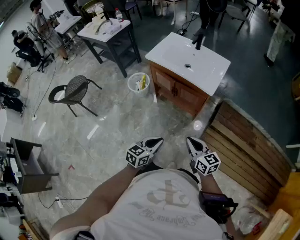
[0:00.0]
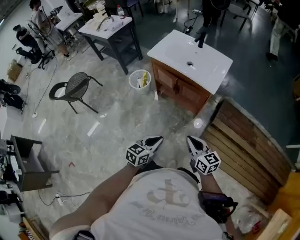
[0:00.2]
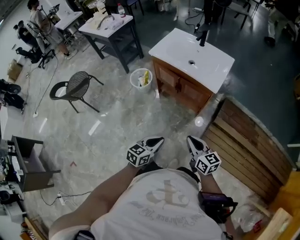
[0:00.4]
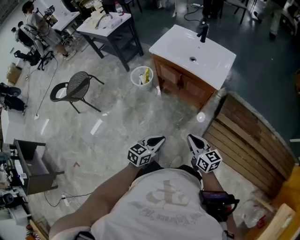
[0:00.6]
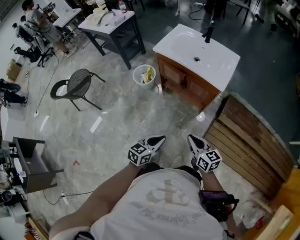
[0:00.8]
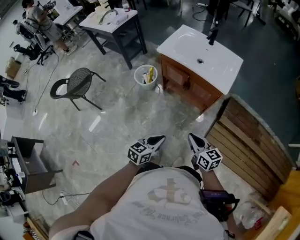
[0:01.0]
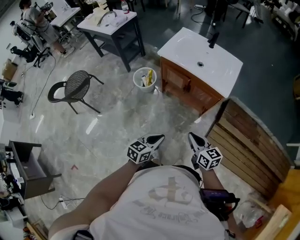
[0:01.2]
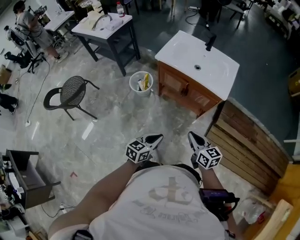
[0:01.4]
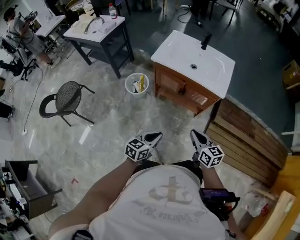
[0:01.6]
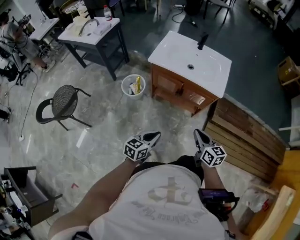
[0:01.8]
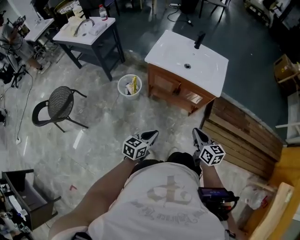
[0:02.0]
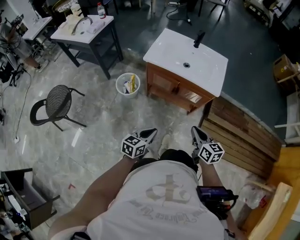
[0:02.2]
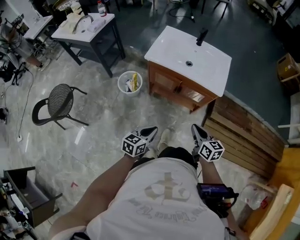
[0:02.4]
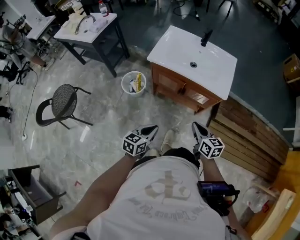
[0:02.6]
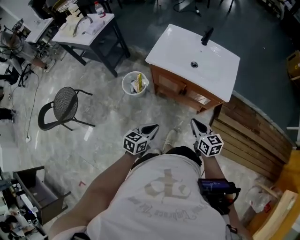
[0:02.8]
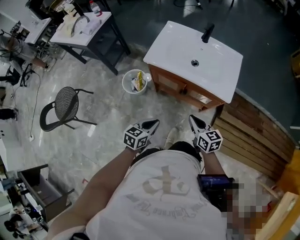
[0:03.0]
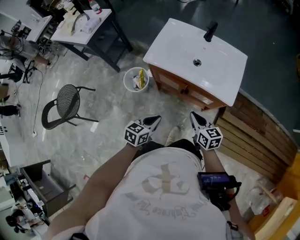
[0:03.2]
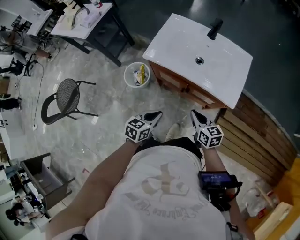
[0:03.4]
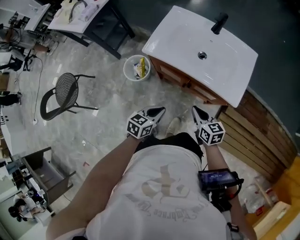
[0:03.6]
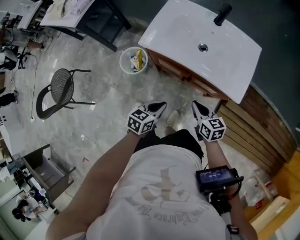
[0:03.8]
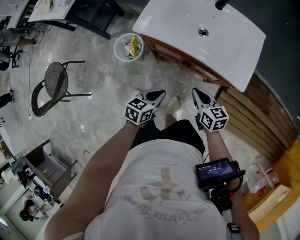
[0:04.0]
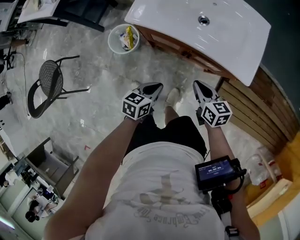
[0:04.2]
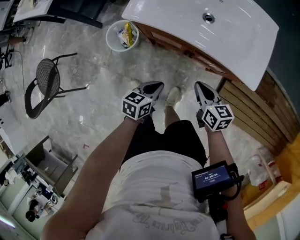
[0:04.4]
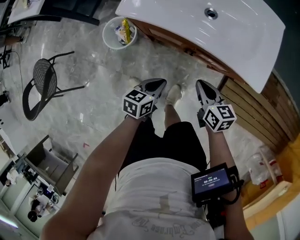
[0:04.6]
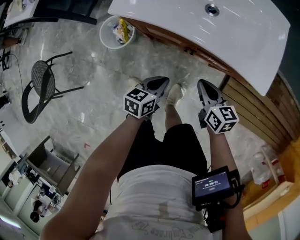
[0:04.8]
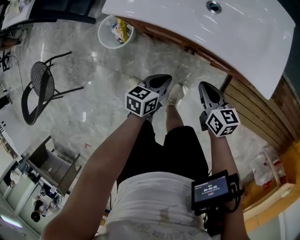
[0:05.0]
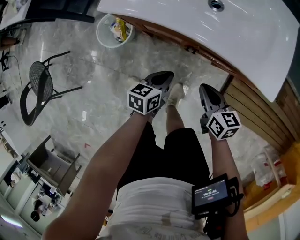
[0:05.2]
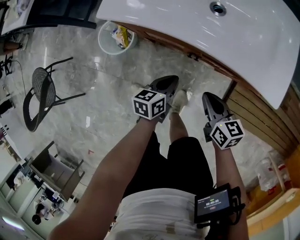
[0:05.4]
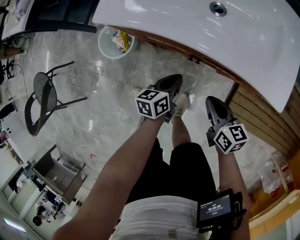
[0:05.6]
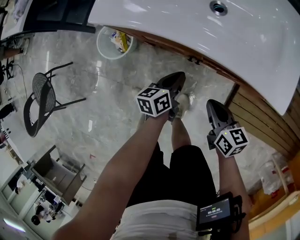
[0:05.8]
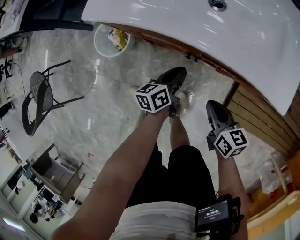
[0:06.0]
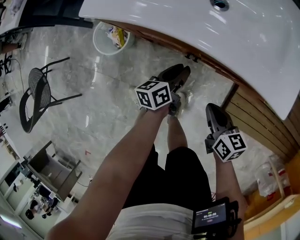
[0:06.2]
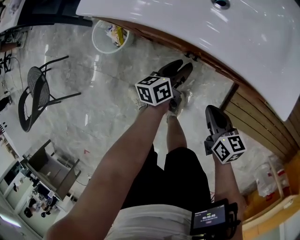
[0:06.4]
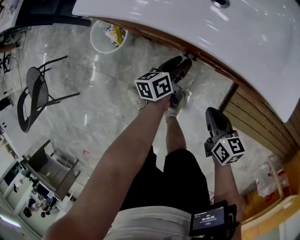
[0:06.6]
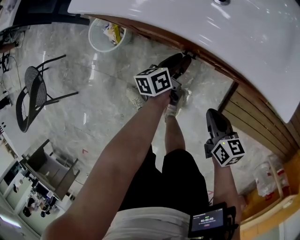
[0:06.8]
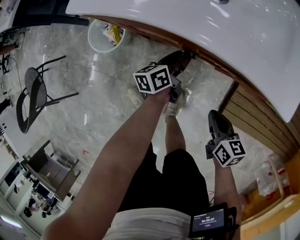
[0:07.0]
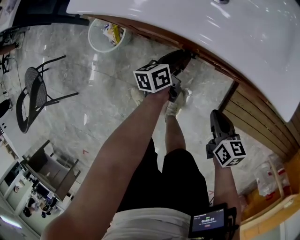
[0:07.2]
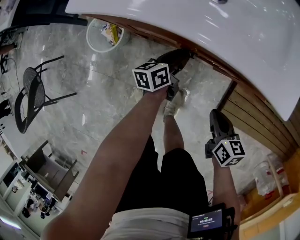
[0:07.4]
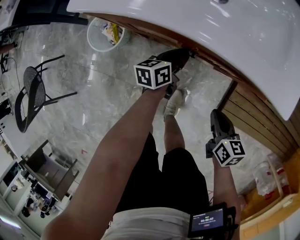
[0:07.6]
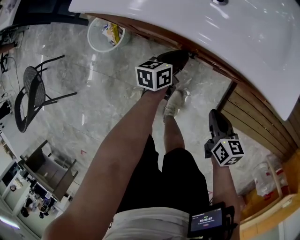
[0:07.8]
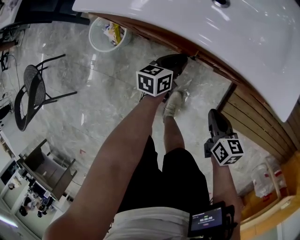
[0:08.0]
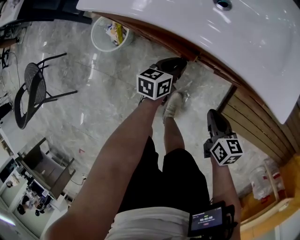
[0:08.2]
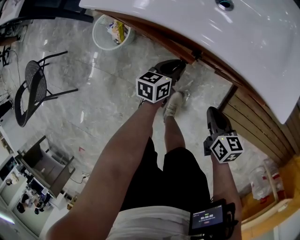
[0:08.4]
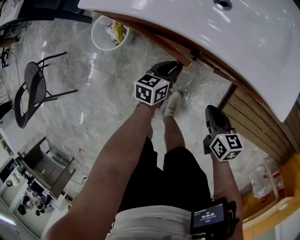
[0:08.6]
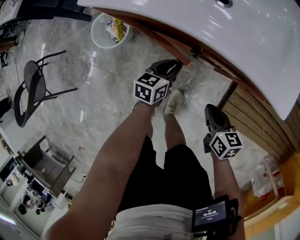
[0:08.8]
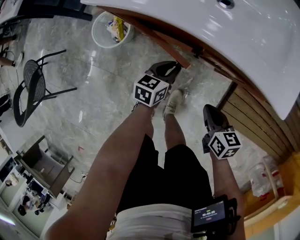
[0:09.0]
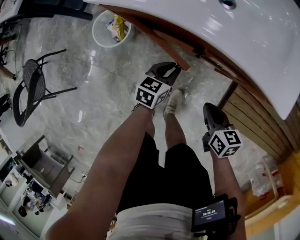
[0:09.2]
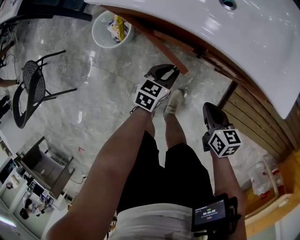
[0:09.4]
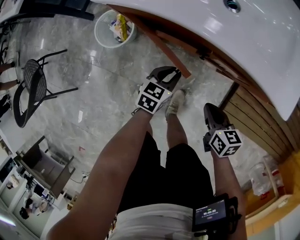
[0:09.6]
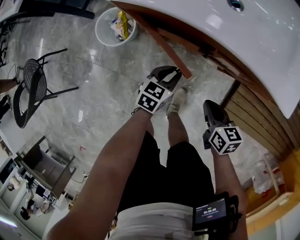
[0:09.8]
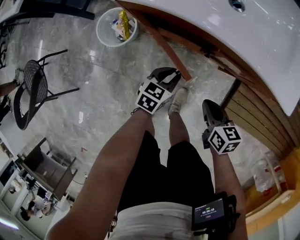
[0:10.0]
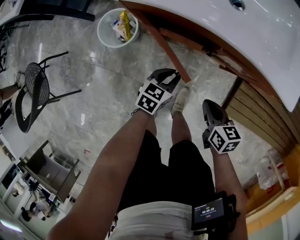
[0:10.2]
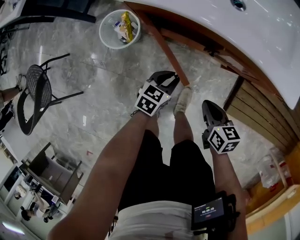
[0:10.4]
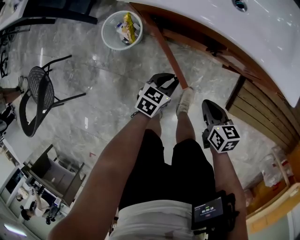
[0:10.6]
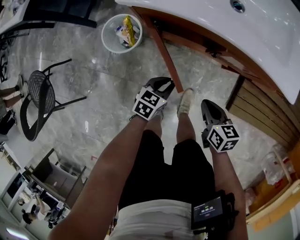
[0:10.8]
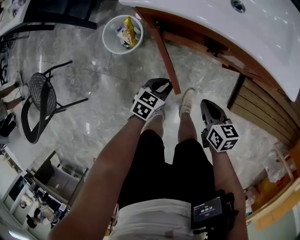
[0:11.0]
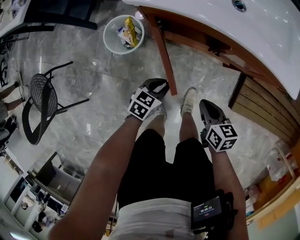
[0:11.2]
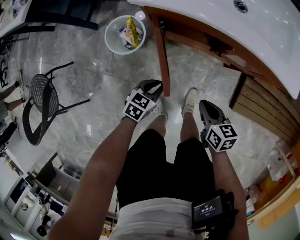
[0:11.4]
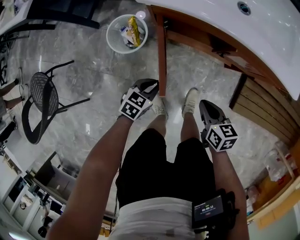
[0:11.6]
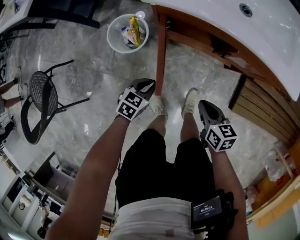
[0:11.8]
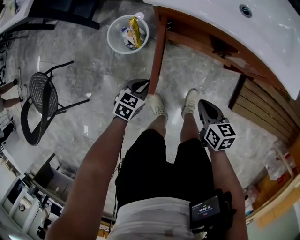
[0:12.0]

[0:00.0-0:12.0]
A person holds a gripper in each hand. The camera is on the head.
0:00.0 to 0:01.6: Both grippers travel together to the left and forward, approximately 20 cm.
0:01.6 to 0:03.0: Both grippers move forward, some 20 cm.
0:03.0 to 0:04.4: The two grippers go approximately 20 cm downward and forward.
0:04.4 to 0:06.0: The left gripper goes some 20 cm downward, forward and to the right, and turns by roughly 30 degrees. Meanwhile the right gripper travels downward by roughly 10 cm.
0:06.0 to 0:07.6: The left gripper shifts by some 5 cm, and opens, then closes once more. The right gripper is displaced to the right by roughly 5 cm.
0:07.6 to 0:09.0: The left gripper travels backward by approximately 5 cm.
0:09.0 to 0:10.4: The right gripper goes some 10 cm to the left. Meanwhile the left gripper goes roughly 10 cm to the left and backward.
0:10.4 to 0:12.0: The right gripper heads to the left, covering approximately 10 cm. The left gripper shifts approximately 20 cm to the left.

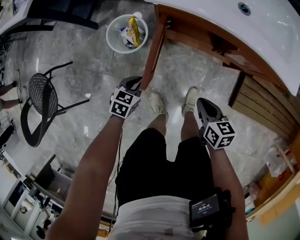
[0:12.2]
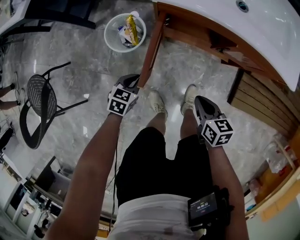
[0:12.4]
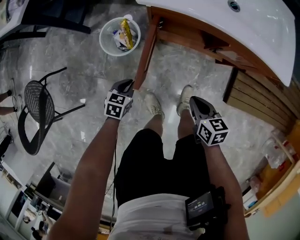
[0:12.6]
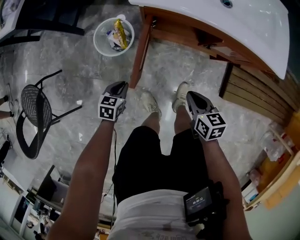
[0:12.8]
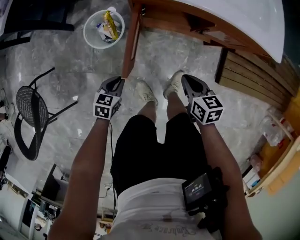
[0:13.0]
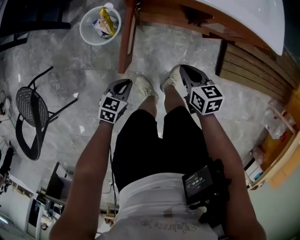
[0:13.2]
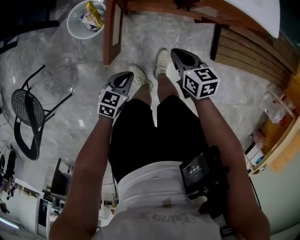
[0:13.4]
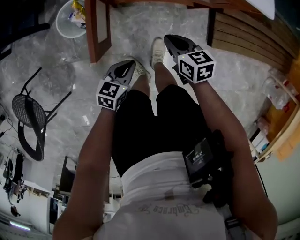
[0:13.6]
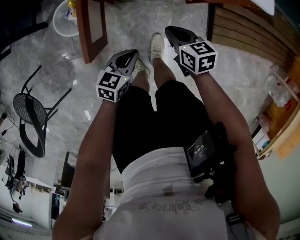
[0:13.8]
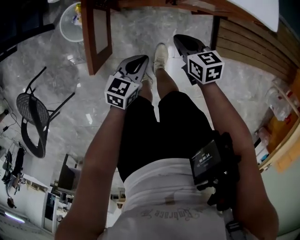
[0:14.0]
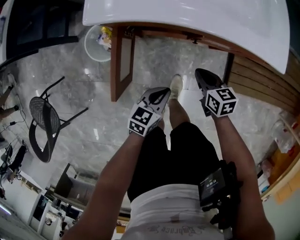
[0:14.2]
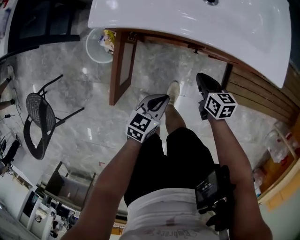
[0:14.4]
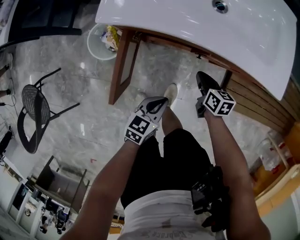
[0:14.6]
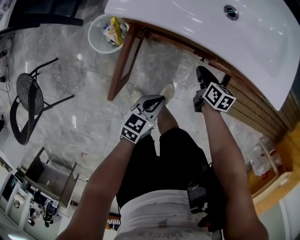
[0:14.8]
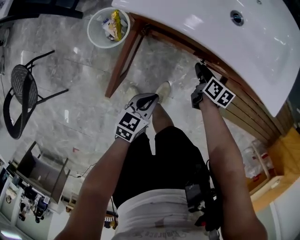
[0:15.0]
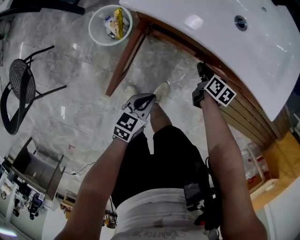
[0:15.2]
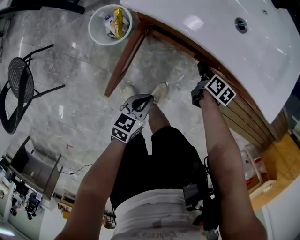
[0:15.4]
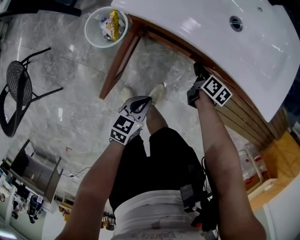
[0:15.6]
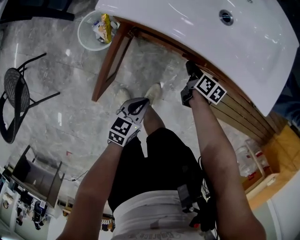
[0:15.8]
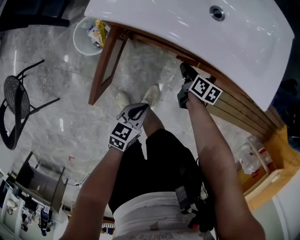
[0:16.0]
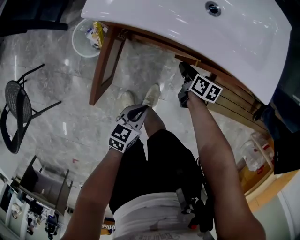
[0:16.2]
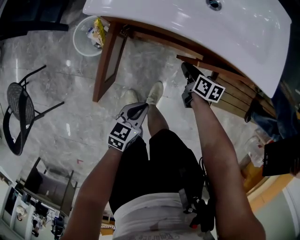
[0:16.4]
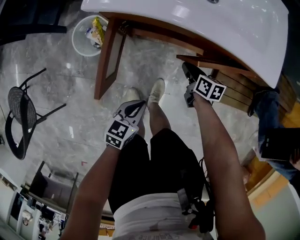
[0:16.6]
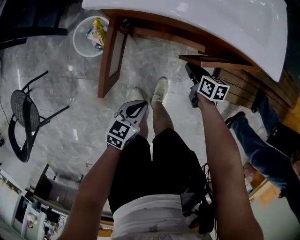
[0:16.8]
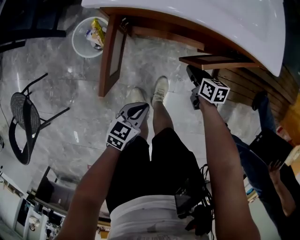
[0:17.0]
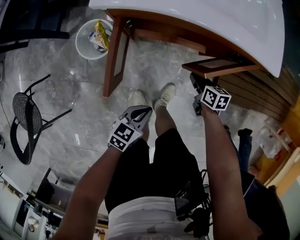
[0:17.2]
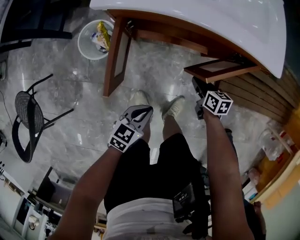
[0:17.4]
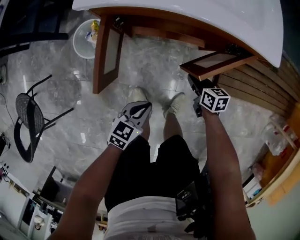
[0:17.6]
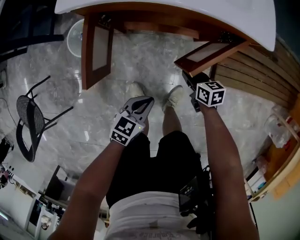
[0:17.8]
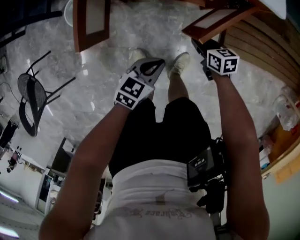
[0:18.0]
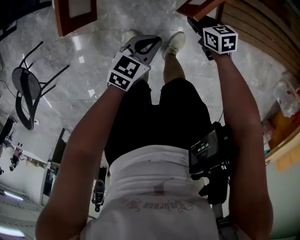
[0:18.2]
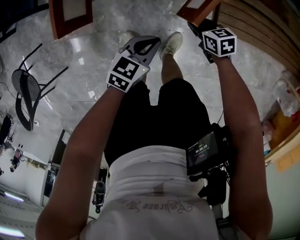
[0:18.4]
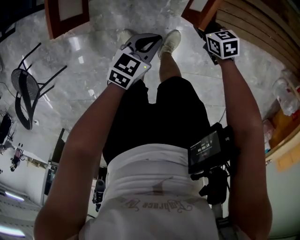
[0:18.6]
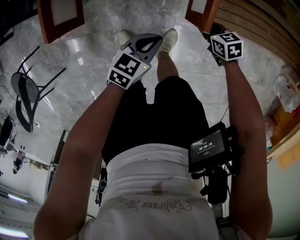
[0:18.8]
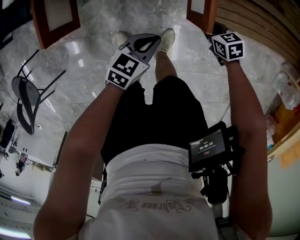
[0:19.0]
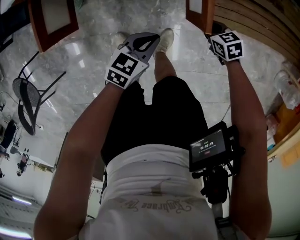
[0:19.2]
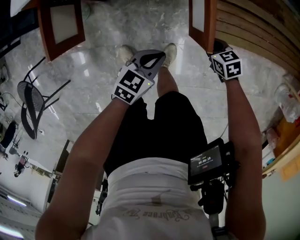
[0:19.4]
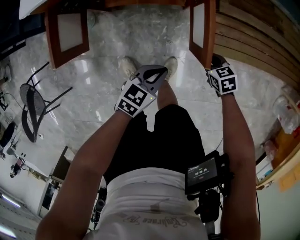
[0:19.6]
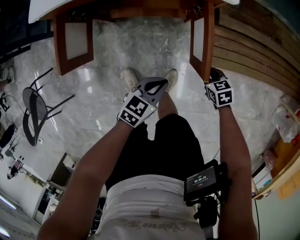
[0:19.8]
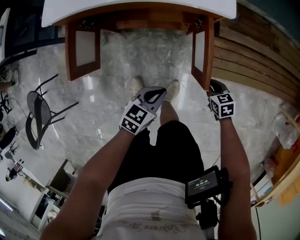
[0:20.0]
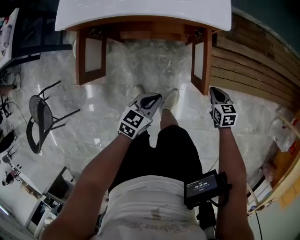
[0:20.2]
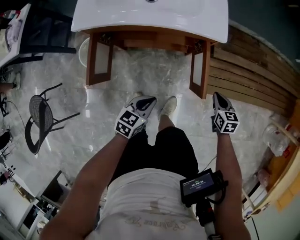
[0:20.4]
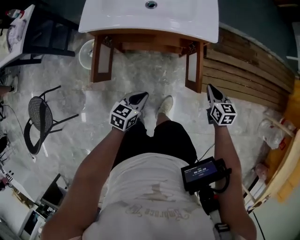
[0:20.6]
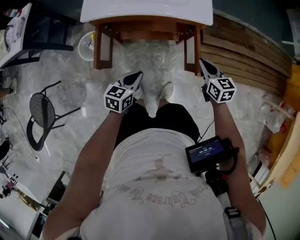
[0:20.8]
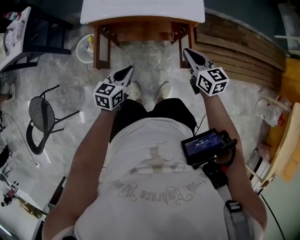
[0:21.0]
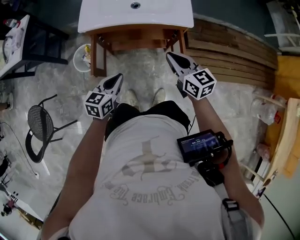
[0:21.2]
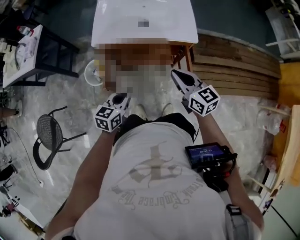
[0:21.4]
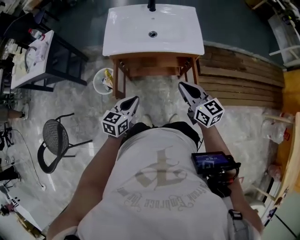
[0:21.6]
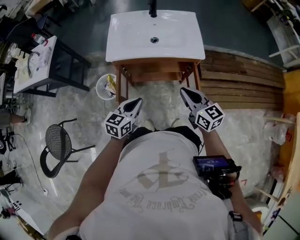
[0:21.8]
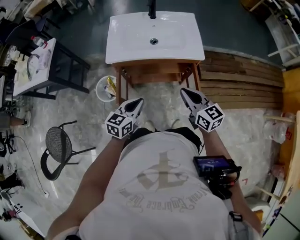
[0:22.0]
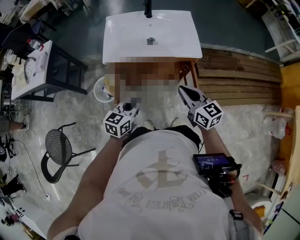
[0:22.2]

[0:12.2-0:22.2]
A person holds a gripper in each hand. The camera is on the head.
0:12.2 to 0:13.6: The left gripper travels to the right and backward by some 15 cm, and turns by some 20 degrees.
0:13.6 to 0:15.0: The left gripper moves forward, some 10 cm. Meanwhile the right gripper travels forward and downward by about 20 cm, and opens up.
0:15.0 to 0:16.4: The grippers stay close to where they were, moving slightly.
0:16.4 to 0:18.0: The left gripper goes approximately 10 cm to the right, while the right gripper heads backward and to the right, covering some 20 cm.
0:18.0 to 0:19.4: Both grippers move to the right, roughly 15 cm.
0:19.4 to 0:20.8: The left gripper shifts about 25 cm to the left and upward. The right gripper moves upward, approximately 30 cm, and turns by some 30 degrees.
0:20.8 to 0:22.2: Both grippers travel together upward and to the left, approximately 20 cm.

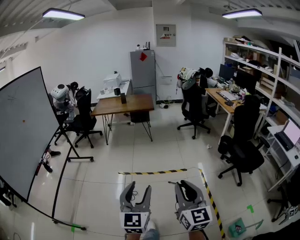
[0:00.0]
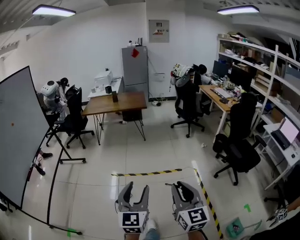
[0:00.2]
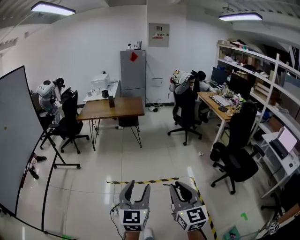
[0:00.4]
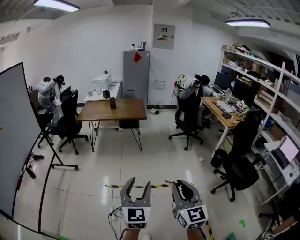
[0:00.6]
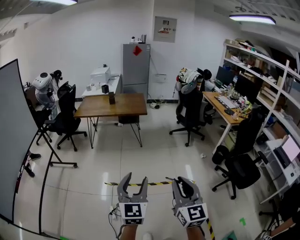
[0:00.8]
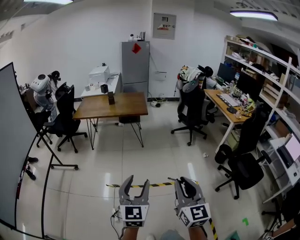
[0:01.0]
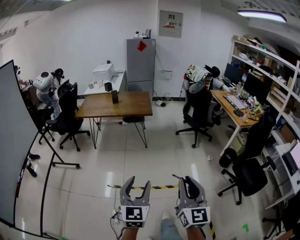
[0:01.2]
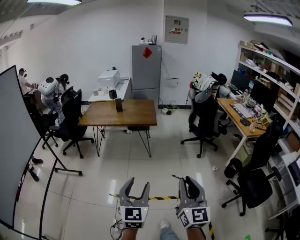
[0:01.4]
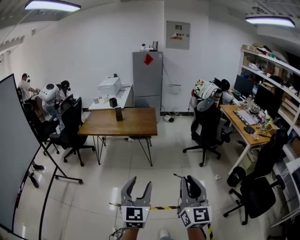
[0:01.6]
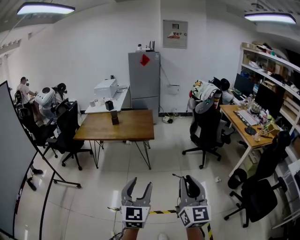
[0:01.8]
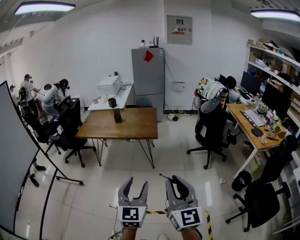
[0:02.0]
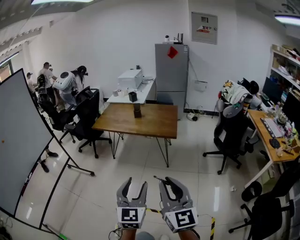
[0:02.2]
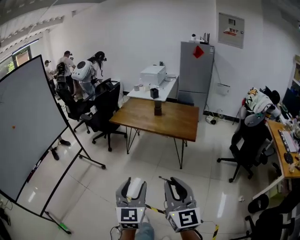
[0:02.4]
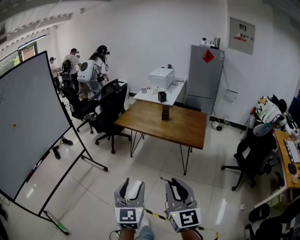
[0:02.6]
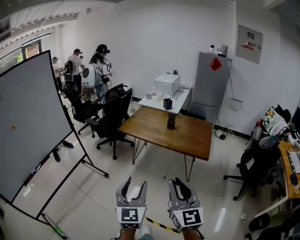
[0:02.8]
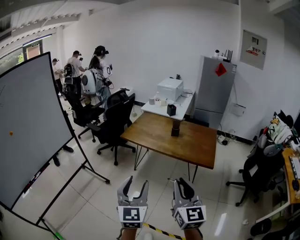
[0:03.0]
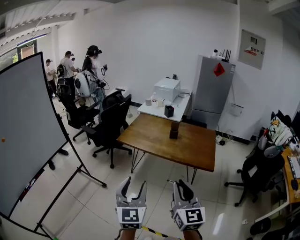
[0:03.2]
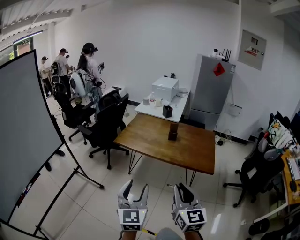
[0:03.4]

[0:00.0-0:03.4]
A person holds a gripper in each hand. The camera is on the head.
0:00.0 to 0:01.6: Both grippers are carried forward, approximately 60 cm.
0:01.6 to 0:03.4: The pair of grippers is taken approximately 50 cm. The right gripper rotates roughly 30 degrees; the left gripper turns by approximately 30 degrees.
